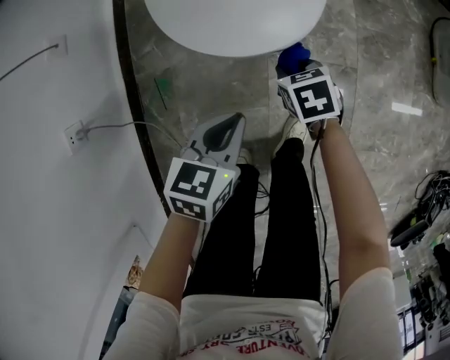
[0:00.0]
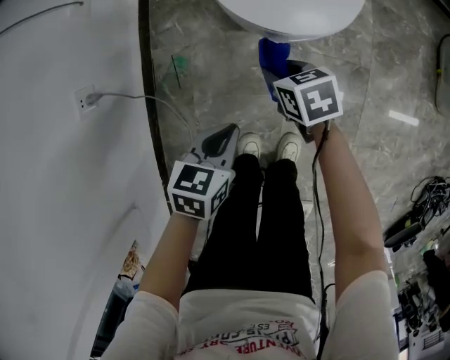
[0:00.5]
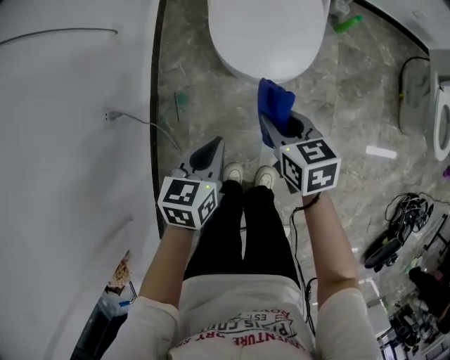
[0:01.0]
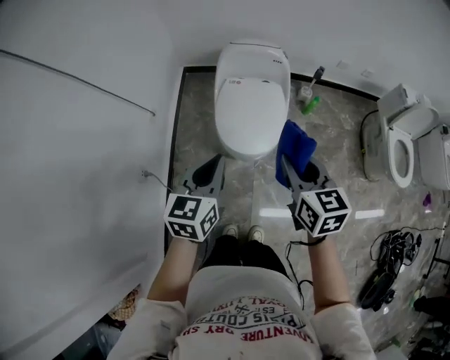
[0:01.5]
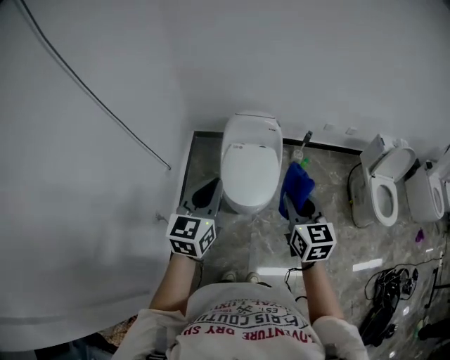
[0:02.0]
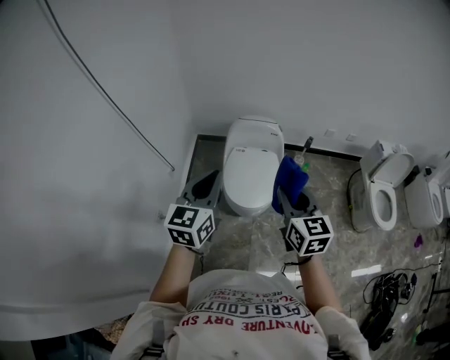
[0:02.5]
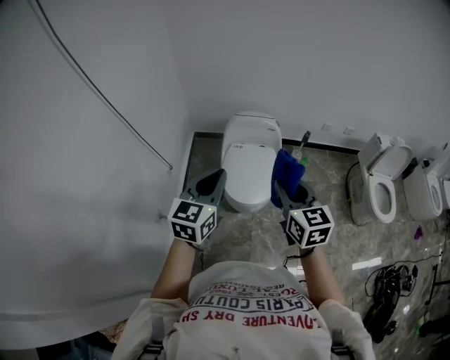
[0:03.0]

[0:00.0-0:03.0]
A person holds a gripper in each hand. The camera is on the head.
0:00.0 to 0:01.5: Both grippers move upward, some 60 cm. The right gripper angles its fingers upward, by roughly 40 degrees; the left gripper changes its angle by approximately 30 degrees.
0:01.5 to 0:03.0: The two grippers go some 20 cm upward.

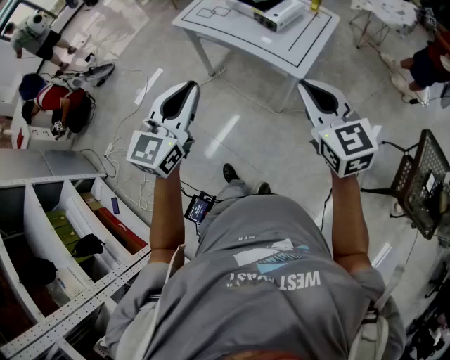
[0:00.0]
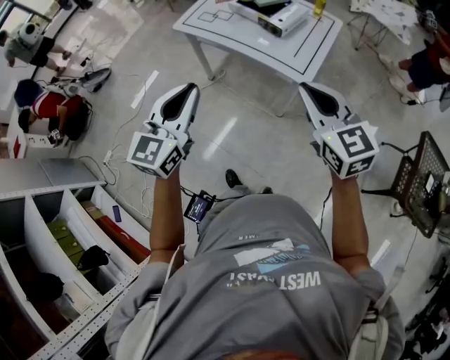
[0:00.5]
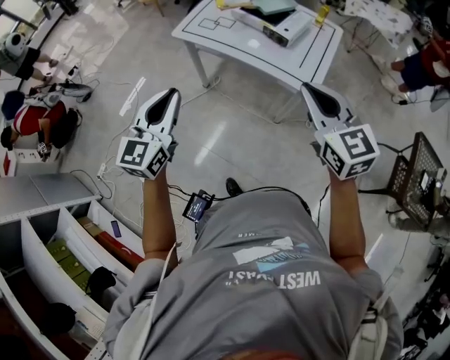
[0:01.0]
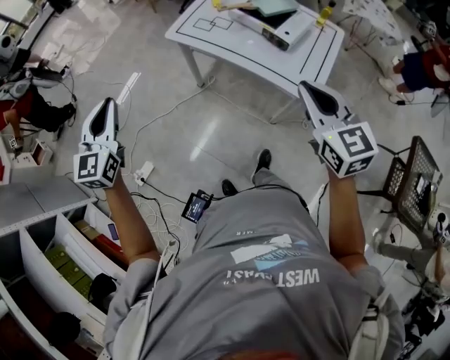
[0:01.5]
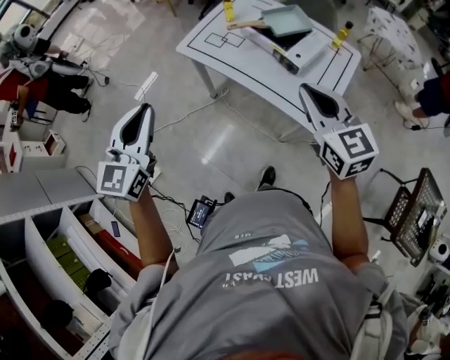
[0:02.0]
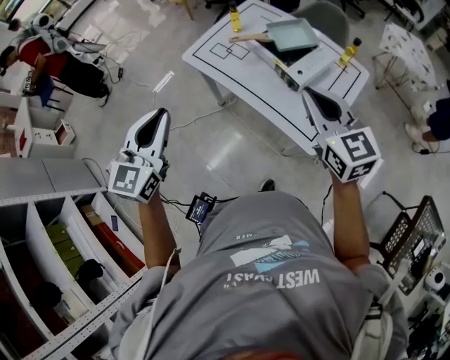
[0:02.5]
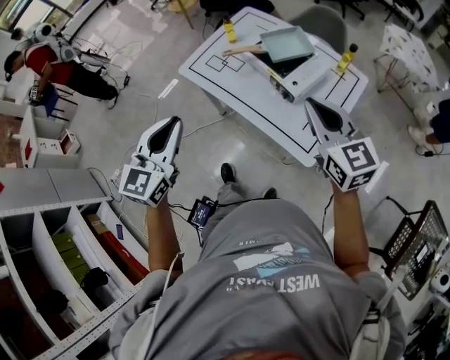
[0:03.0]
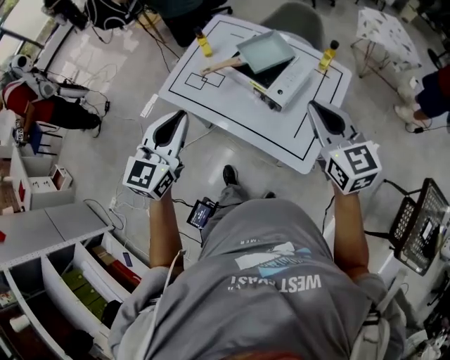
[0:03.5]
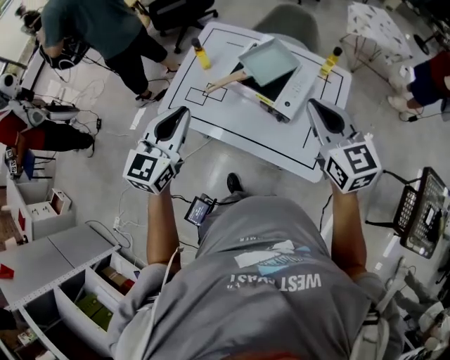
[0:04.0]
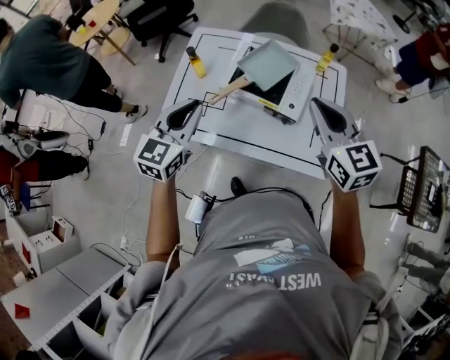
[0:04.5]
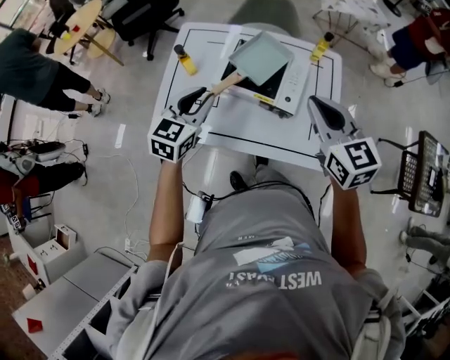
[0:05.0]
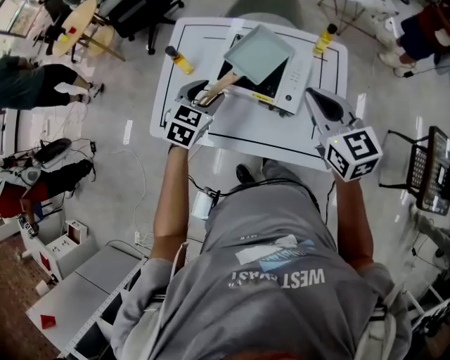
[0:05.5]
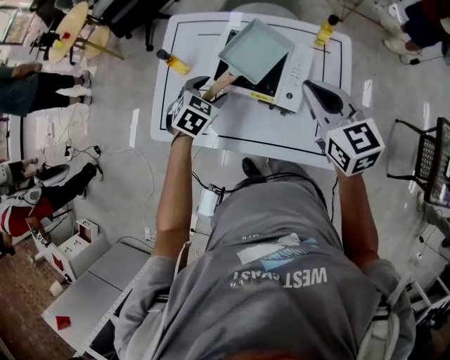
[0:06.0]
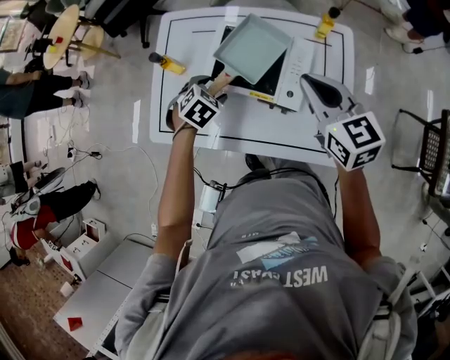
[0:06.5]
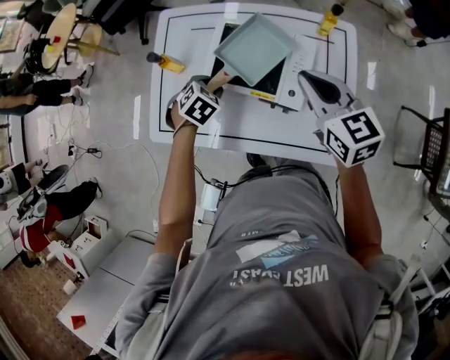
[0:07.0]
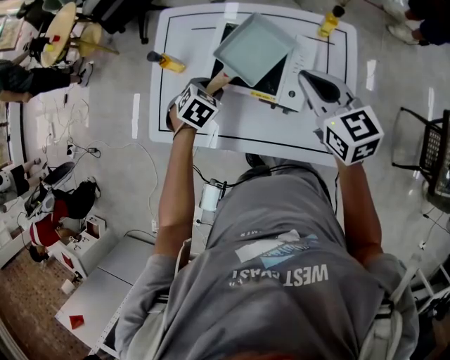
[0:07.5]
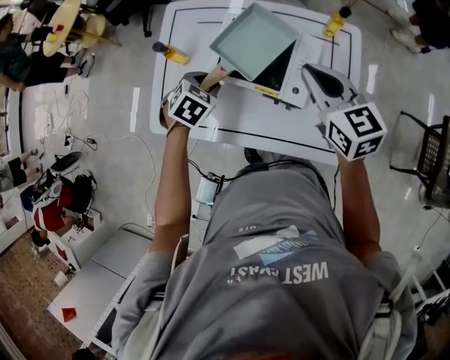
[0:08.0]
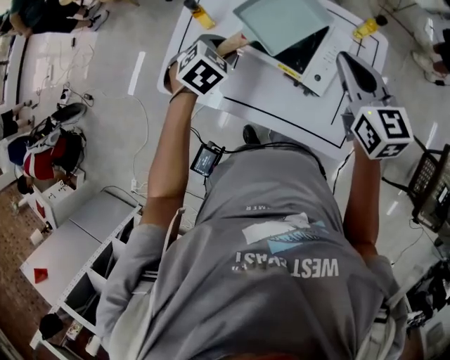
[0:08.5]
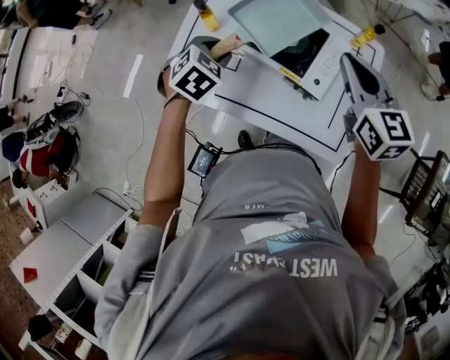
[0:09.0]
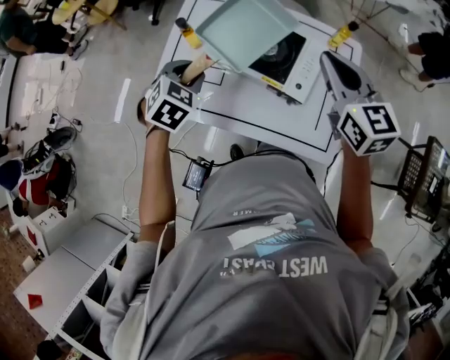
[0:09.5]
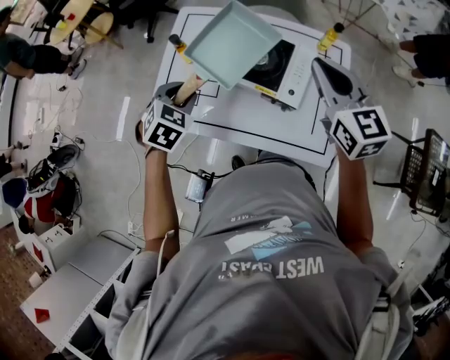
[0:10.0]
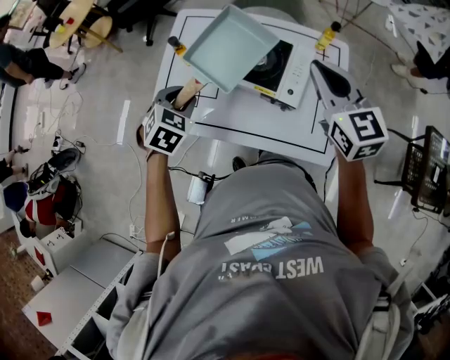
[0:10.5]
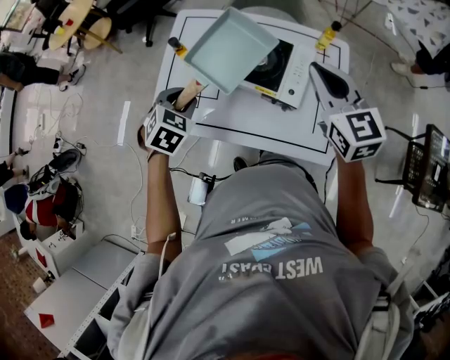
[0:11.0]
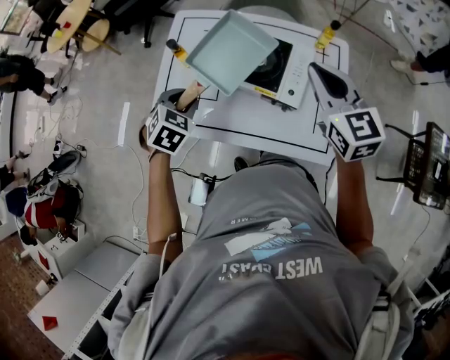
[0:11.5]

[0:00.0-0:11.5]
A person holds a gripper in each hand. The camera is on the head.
0:00.0 to 0:02.0: The right gripper shifts roughly 25 cm forward. Meanwhile the left gripper is displaced forward and to the left by roughly 30 cm.
0:02.0 to 0:04.0: The grippers both shift forward and to the right by about 25 cm. The left gripper turns by approximately 20 degrees.
0:04.0 to 0:06.0: The left gripper goes approximately 30 cm downward and forward, tips its fingers downward by approximately 40 degrees, and opens up, while the right gripper goes roughly 15 cm forward and downward.
0:06.0 to 0:07.5: The right gripper ends up about 5 cm from where it was. The left gripper moves downward, approximately 5 cm, and closes up.
0:07.5 to 0:09.5: The right gripper is displaced upward by roughly 10 cm. Meanwhile the left gripper is displaced upward and to the left by about 15 cm.
0:09.5 to 0:11.5: The grippers move only a little.

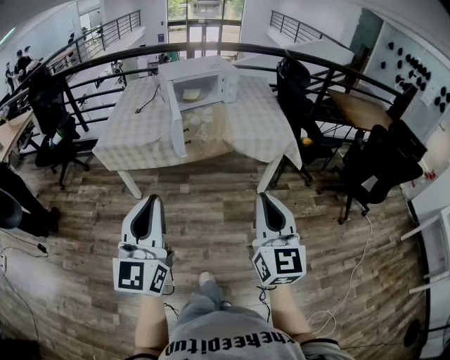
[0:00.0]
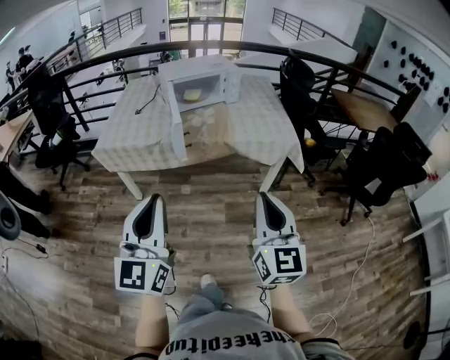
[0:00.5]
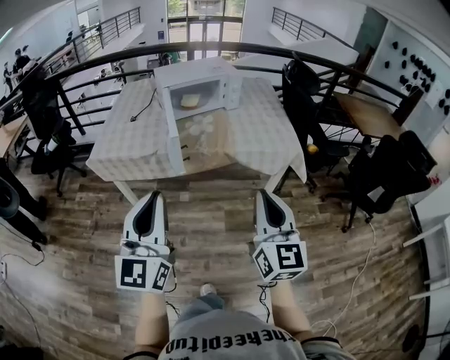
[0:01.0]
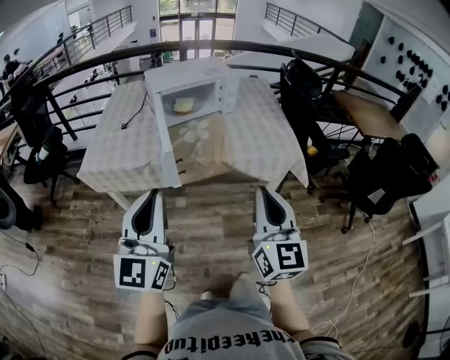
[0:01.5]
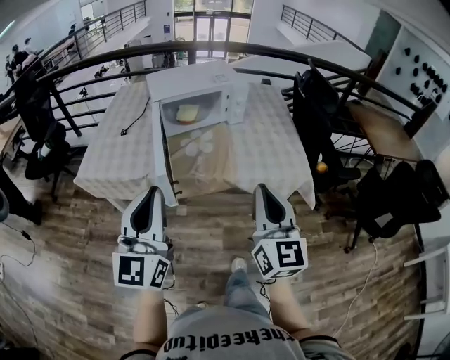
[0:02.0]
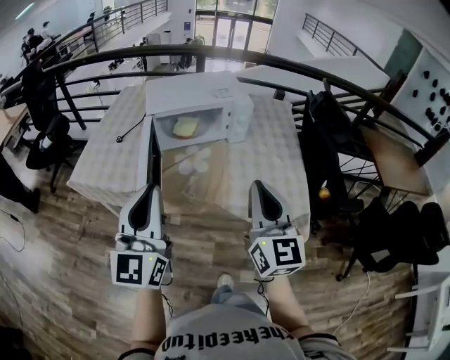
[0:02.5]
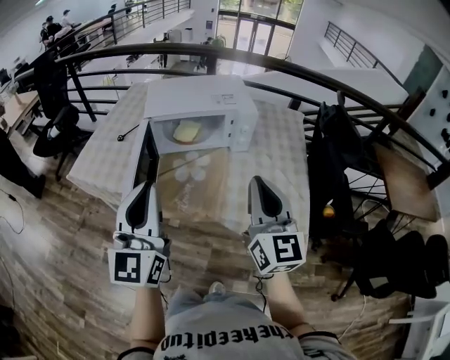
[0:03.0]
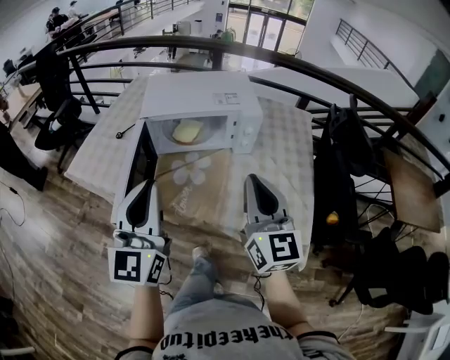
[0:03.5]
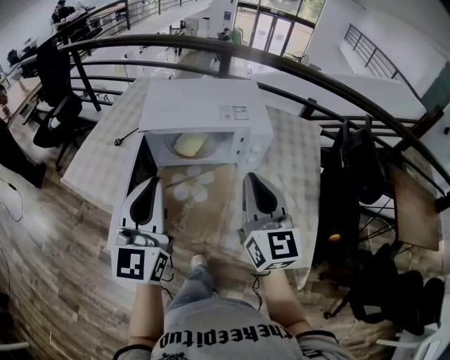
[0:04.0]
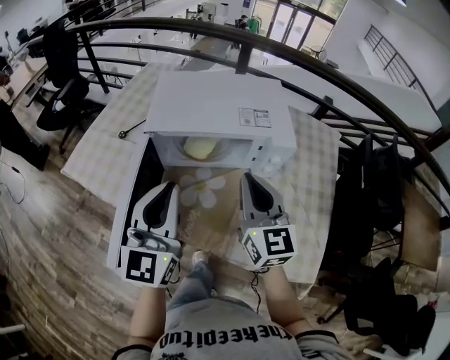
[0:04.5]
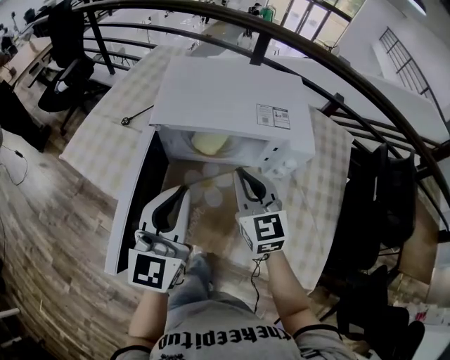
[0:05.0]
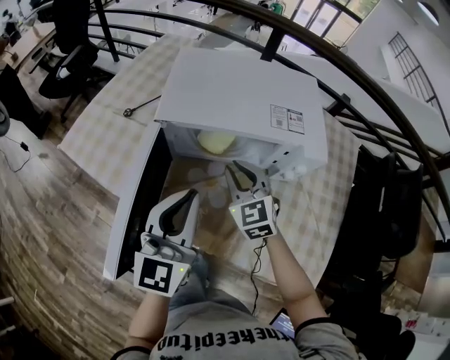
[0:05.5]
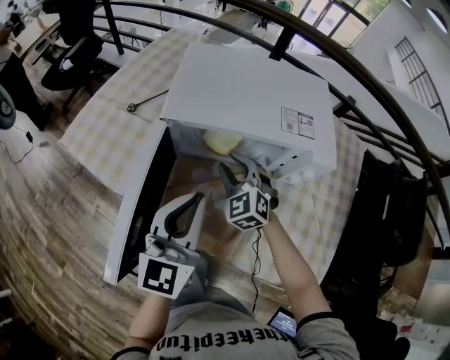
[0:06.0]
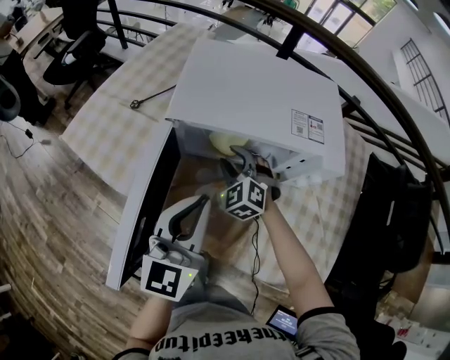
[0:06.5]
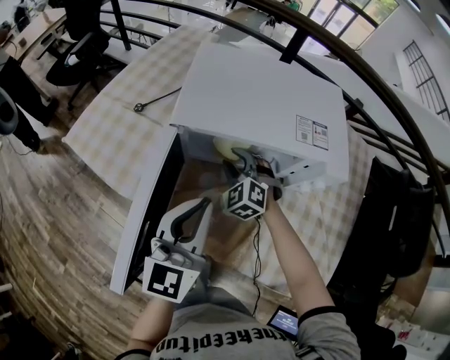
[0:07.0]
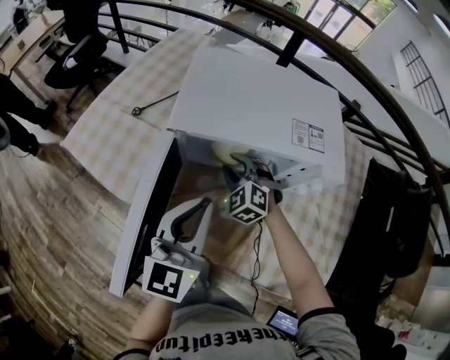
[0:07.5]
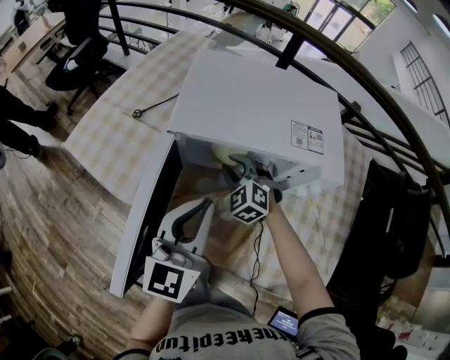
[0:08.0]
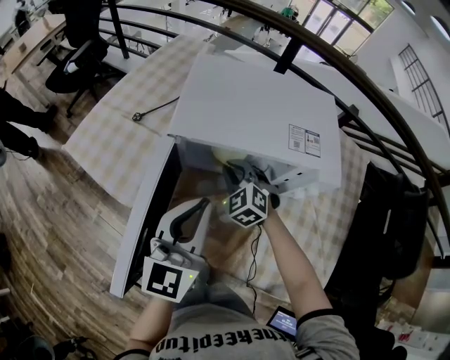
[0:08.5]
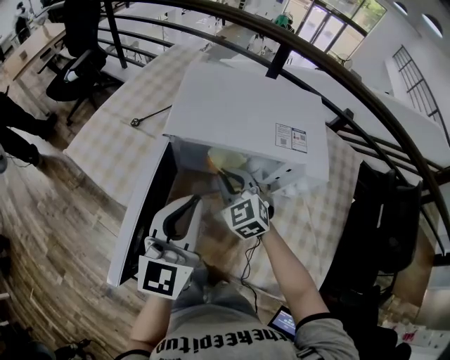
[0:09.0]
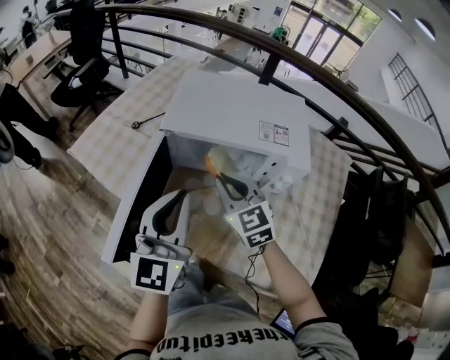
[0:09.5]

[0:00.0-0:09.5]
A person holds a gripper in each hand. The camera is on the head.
0:00.0 to 0:02.0: The two grippers go some 30 cm forward.
0:02.0 to 0:04.0: The right gripper moves forward, some 35 cm, and swivels about 20 degrees, while the left gripper shifts approximately 30 cm forward and to the right.
0:04.0 to 0:05.5: The right gripper heads downward, forward and to the left, covering approximately 30 cm, and turns by approximately 40 degrees; the left gripper travels downward and forward by some 15 cm.
0:05.5 to 0:07.5: The right gripper moves downward and forward, approximately 10 cm, and rotates approximately 30 degrees.
0:07.5 to 0:09.5: The right gripper moves upward and backward, approximately 20 cm, rotates about 40 degrees, and closes. The left gripper travels upward by approximately 5 cm.

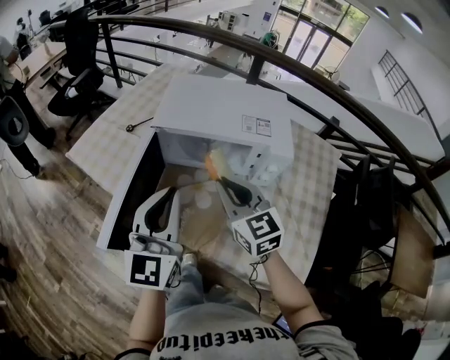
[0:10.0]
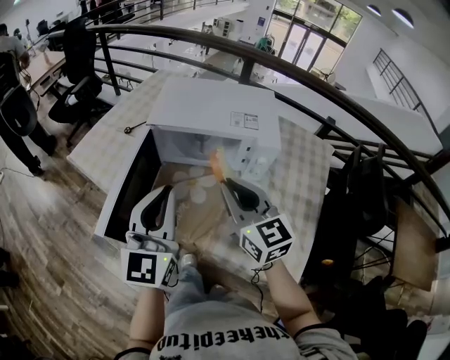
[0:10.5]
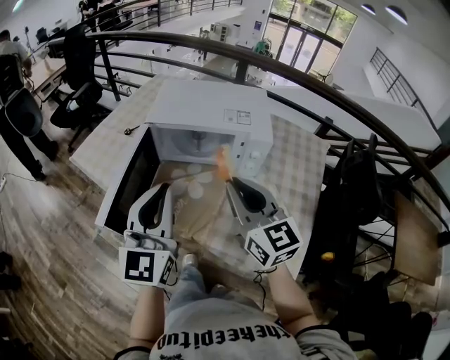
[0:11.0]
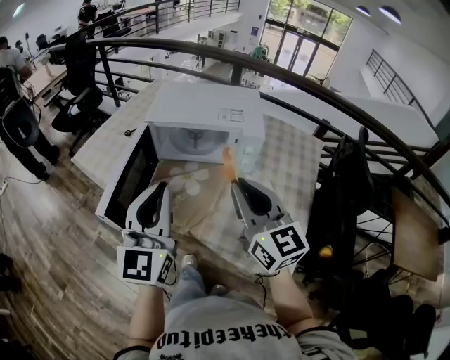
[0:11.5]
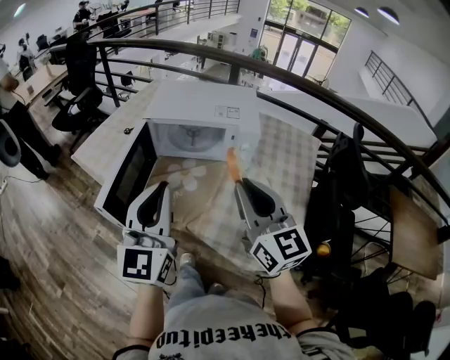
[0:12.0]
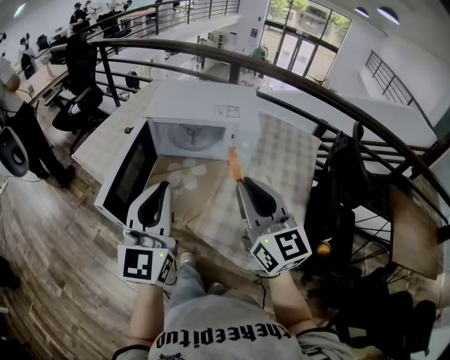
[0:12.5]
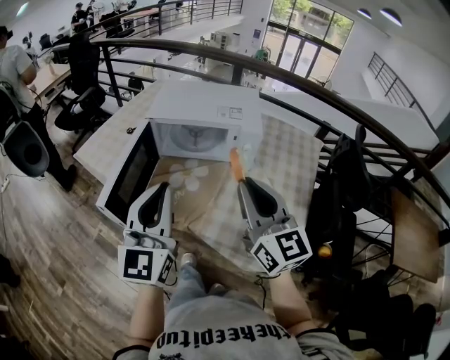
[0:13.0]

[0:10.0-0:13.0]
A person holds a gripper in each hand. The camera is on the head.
0:10.0 to 0:11.5: The right gripper shifts approximately 20 cm backward, upward and to the right; the left gripper travels backward by approximately 10 cm.
0:11.5 to 0:13.0: The grippers make only small movements.
